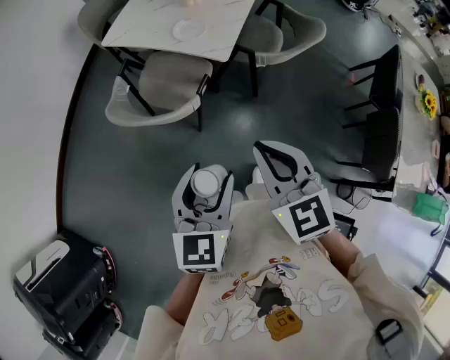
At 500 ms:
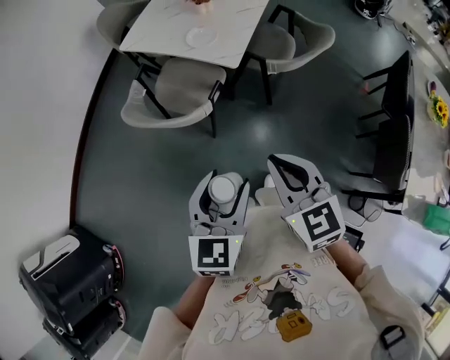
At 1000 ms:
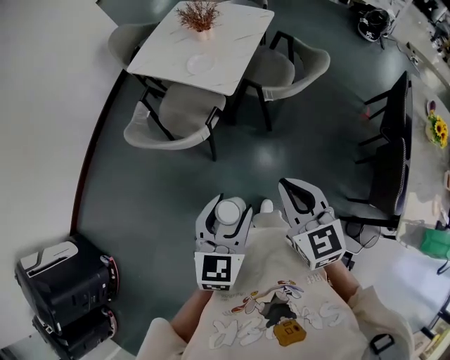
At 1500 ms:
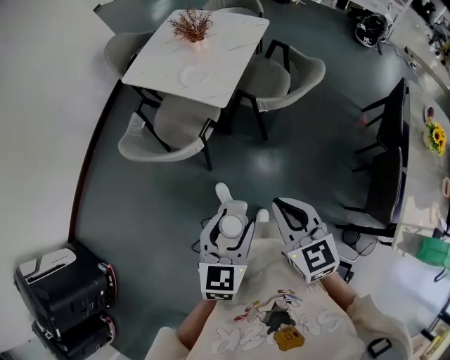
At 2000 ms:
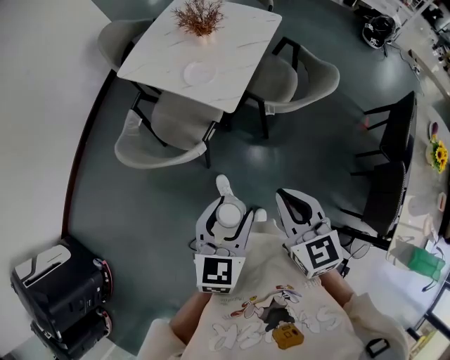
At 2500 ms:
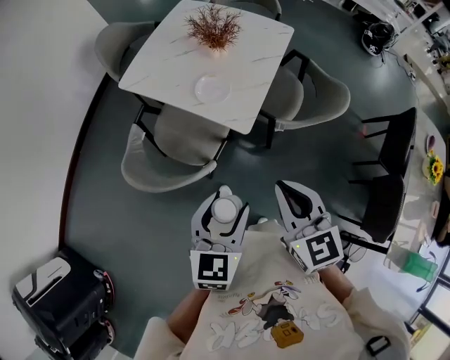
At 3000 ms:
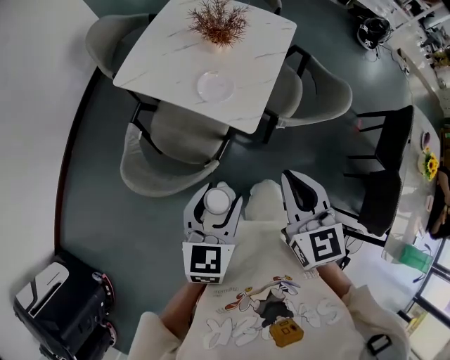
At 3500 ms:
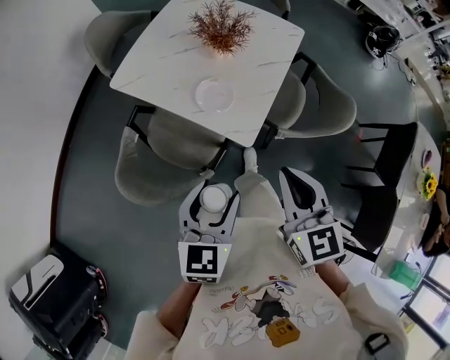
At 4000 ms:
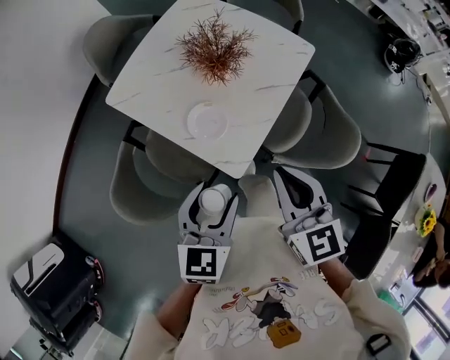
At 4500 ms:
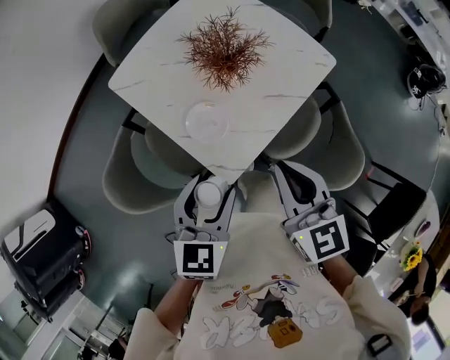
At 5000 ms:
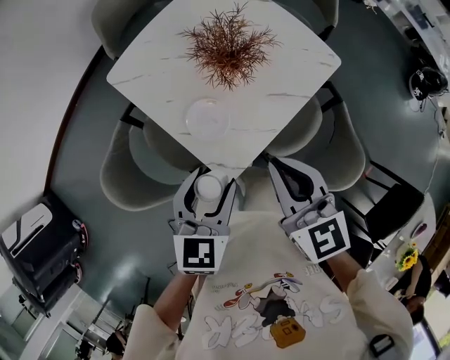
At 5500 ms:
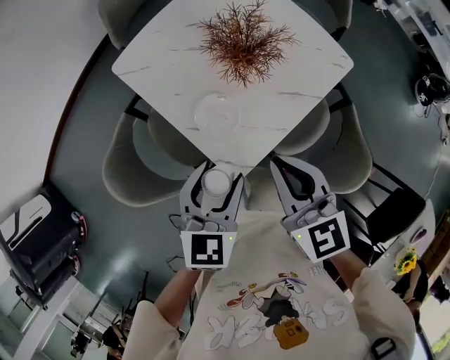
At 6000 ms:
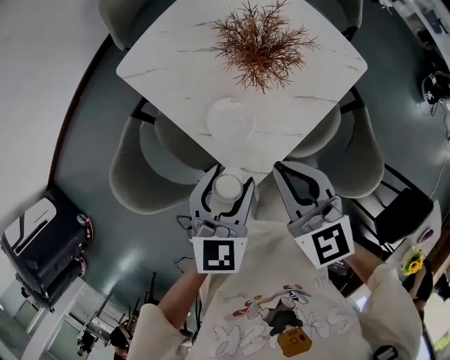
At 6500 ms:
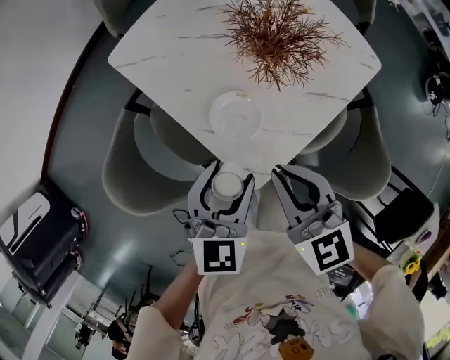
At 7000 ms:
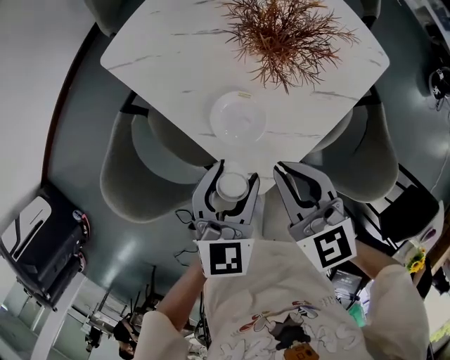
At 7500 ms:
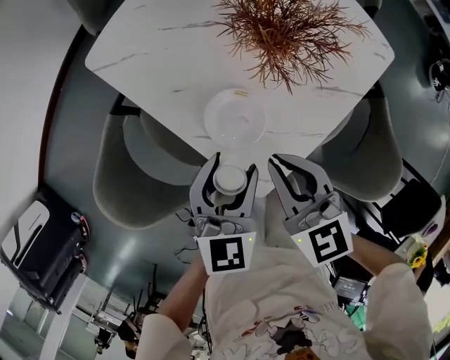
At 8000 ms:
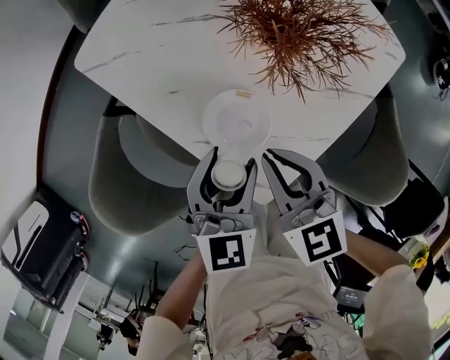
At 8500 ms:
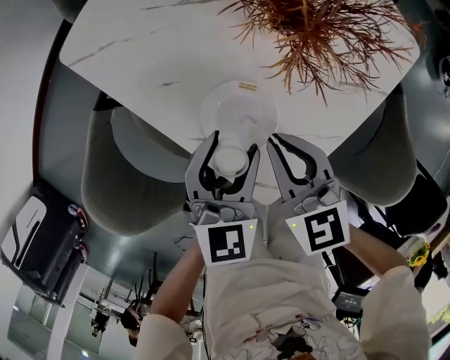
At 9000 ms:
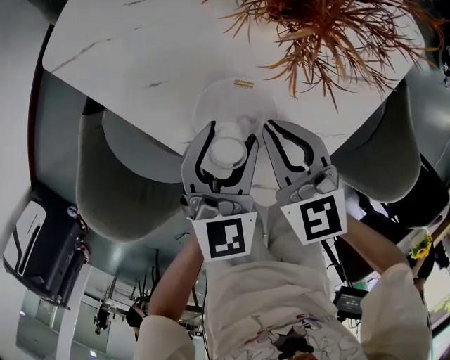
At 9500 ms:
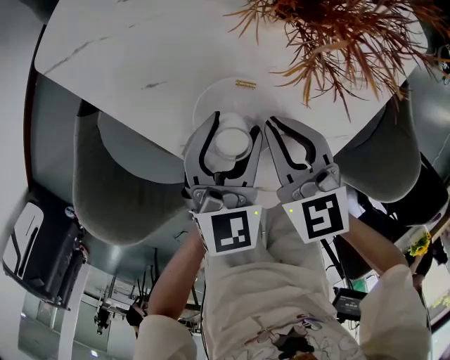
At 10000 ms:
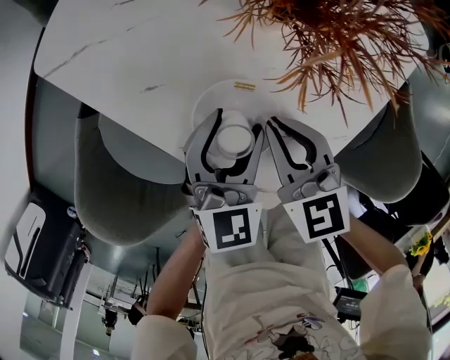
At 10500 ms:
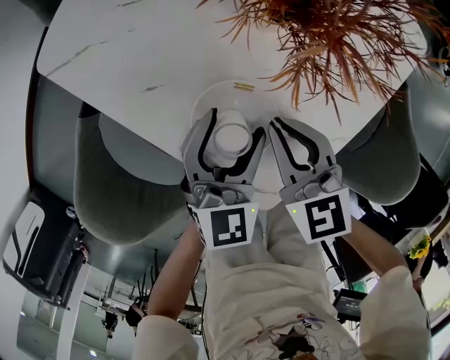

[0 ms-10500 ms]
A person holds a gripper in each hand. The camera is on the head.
0 ms to 2000 ms: Both grippers travel together to the right and forward, some 15 cm.
2000 ms to 4000 ms: The two grippers go about 35 cm forward.
4000 ms to 6500 ms: The right gripper travels forward, downward and to the left by approximately 15 cm, and swivels roughly 20 degrees. The left gripper travels forward and downward by roughly 15 cm.
6500 ms to 8500 ms: The right gripper goes approximately 15 cm downward. The left gripper travels downward and forward by roughly 15 cm.
8500 ms to 10500 ms: The right gripper changes place by about 5 cm. Meanwhile the left gripper moves some 5 cm.

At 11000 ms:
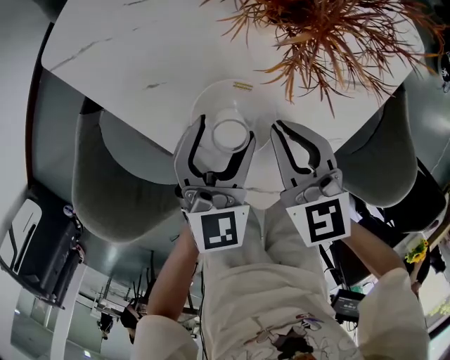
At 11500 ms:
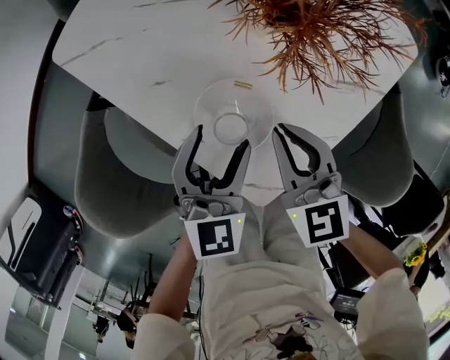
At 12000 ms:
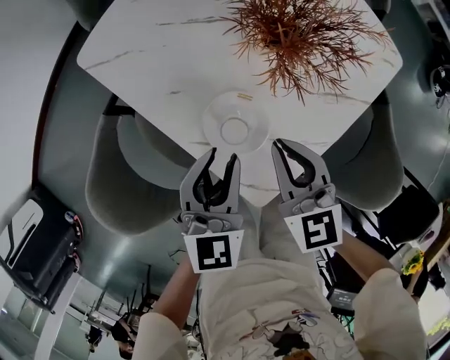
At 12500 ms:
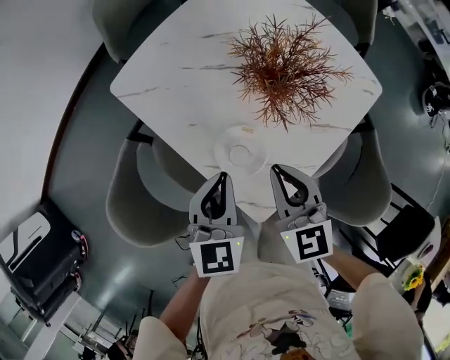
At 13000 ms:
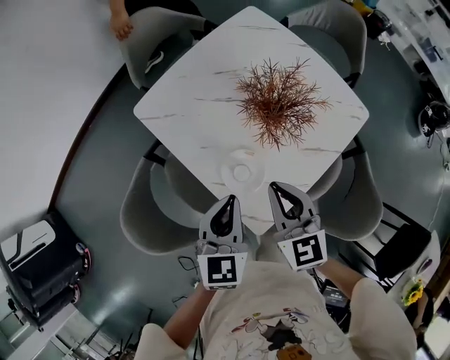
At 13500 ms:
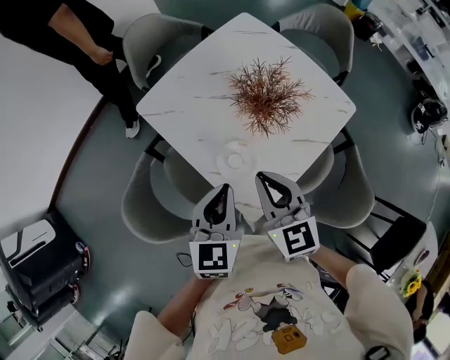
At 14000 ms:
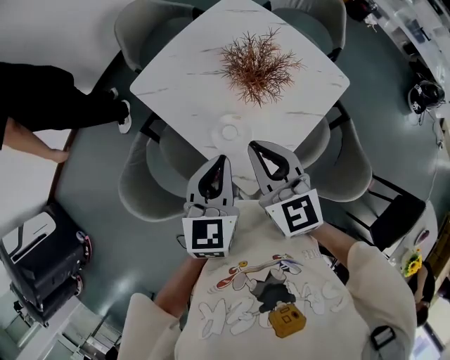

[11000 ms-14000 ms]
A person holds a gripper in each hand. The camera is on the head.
11000 ms to 12500 ms: Both grippers move upward, approximately 15 cm. The left gripper closes up.
12500 ms to 14000 ms: The two grippers go roughly 15 cm upward.

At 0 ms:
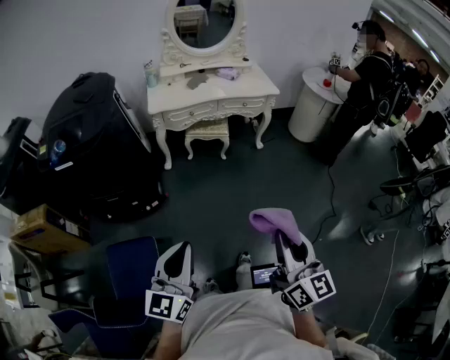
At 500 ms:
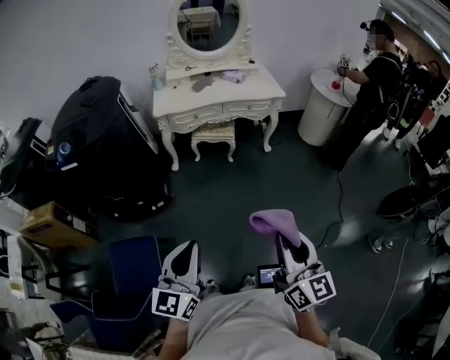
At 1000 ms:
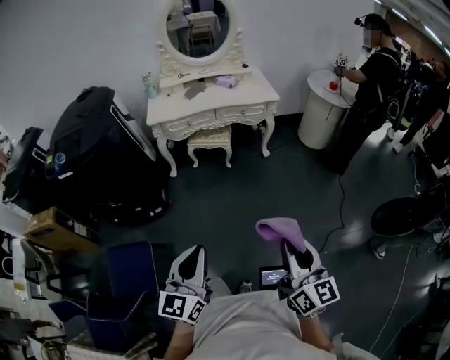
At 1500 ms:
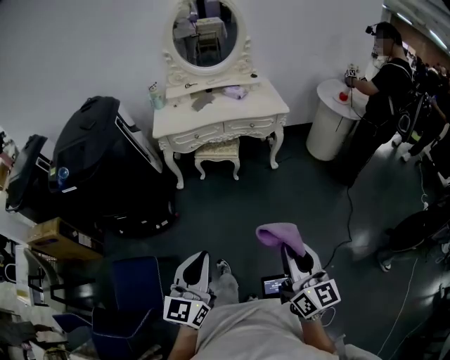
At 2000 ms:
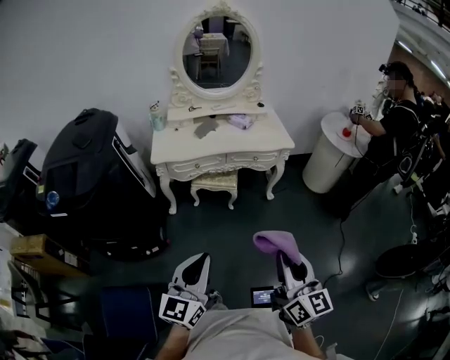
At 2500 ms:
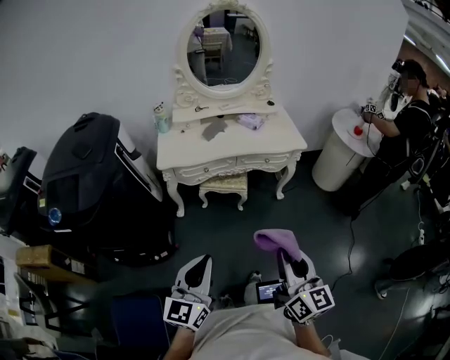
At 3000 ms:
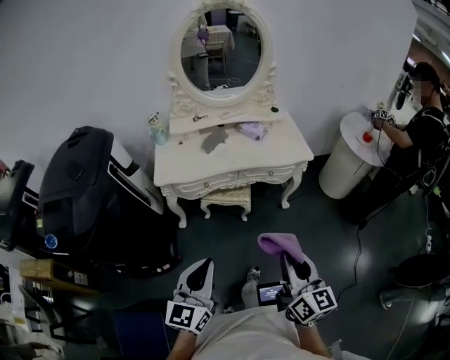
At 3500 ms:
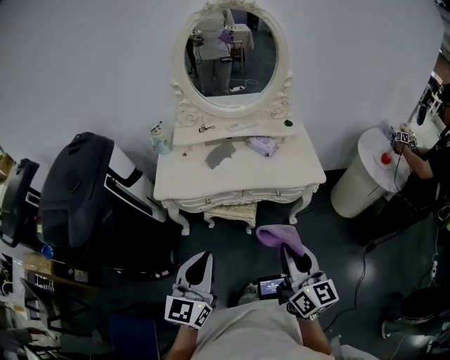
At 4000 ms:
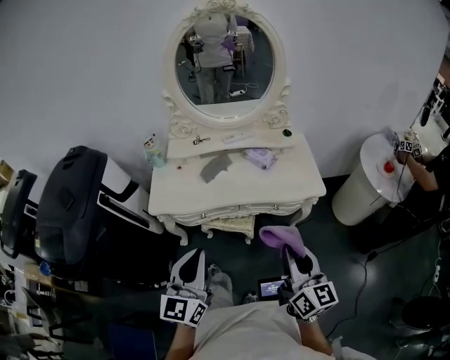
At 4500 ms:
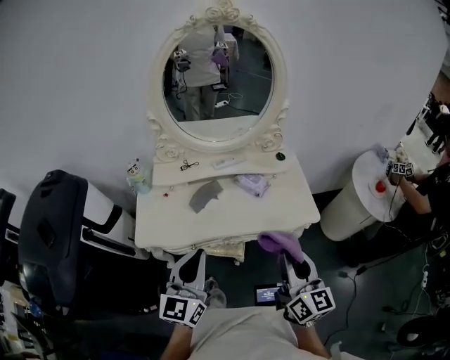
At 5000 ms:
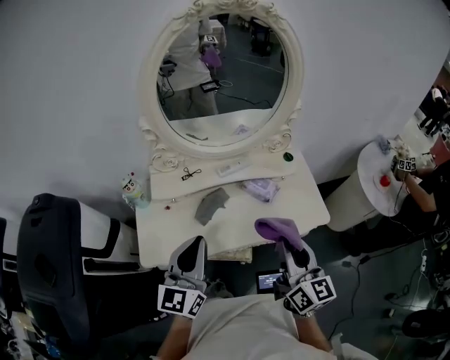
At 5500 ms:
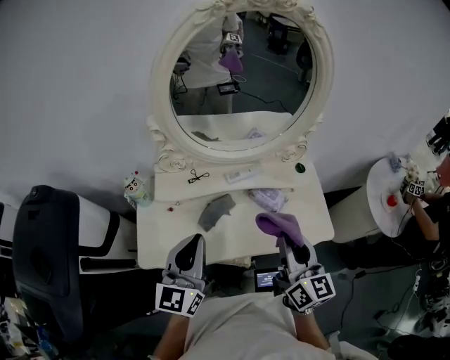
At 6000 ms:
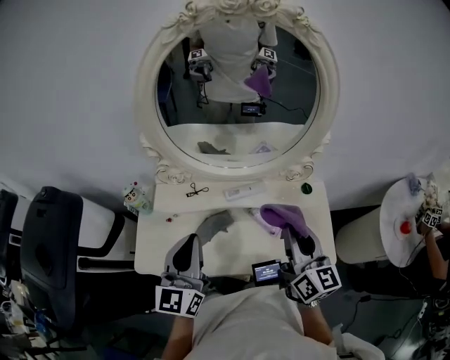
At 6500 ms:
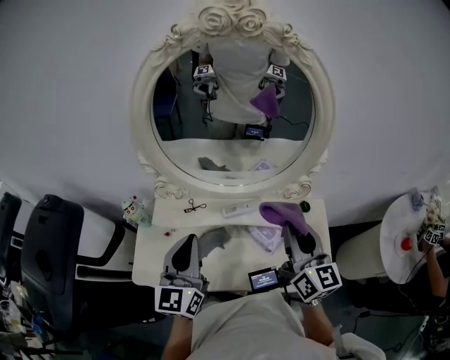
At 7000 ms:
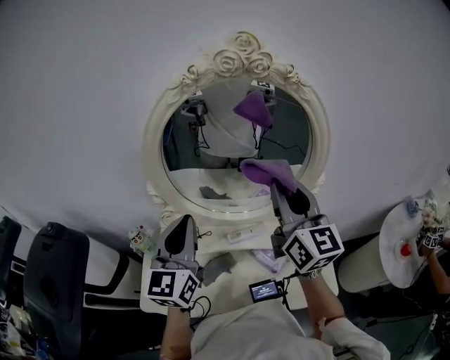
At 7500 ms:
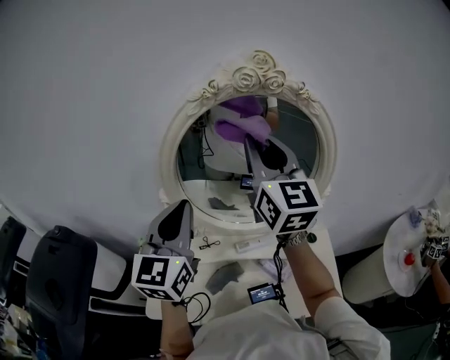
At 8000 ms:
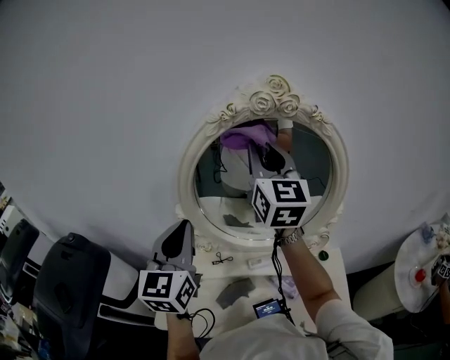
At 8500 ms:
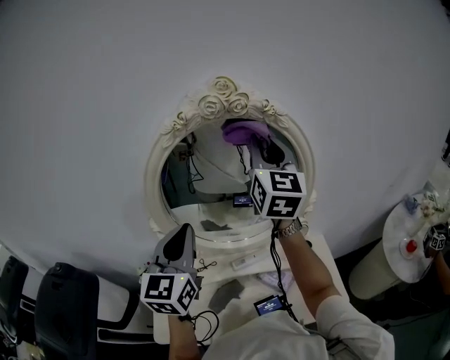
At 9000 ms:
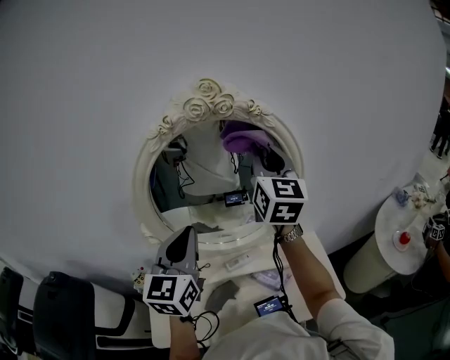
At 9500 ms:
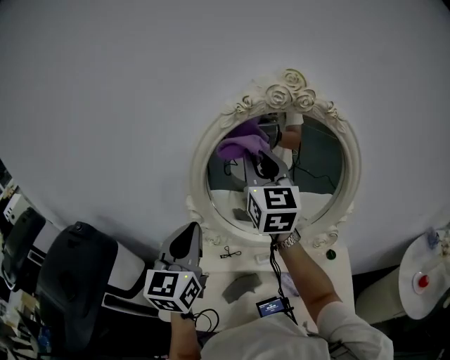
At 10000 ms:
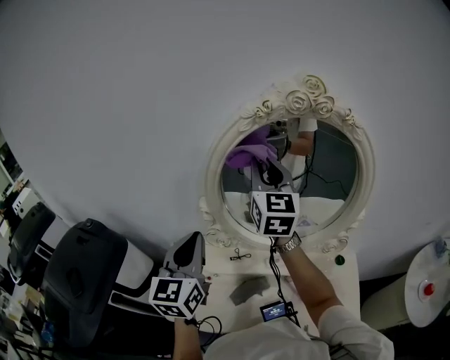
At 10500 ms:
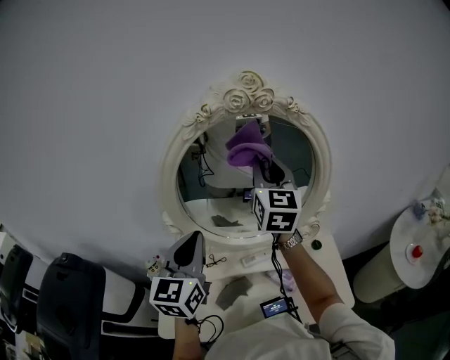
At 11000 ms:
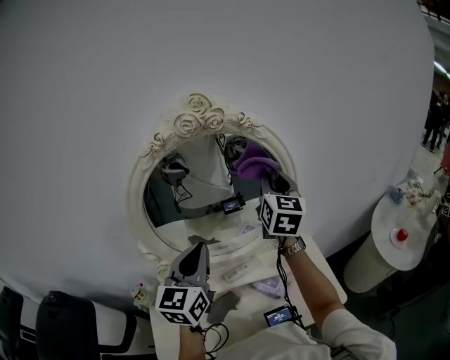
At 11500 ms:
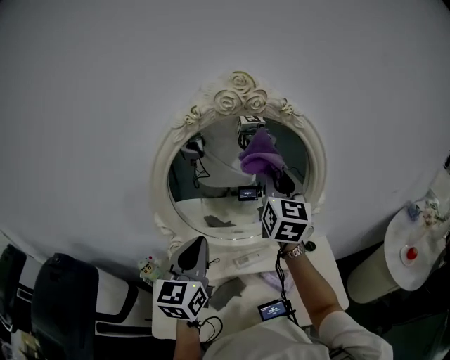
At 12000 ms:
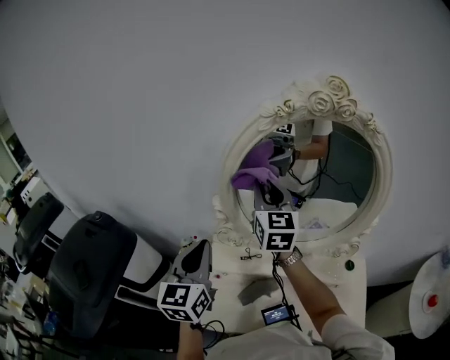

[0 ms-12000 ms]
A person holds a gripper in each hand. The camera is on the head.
0 ms to 2000 ms: Both grippers travel together forward, about 25 cm.
2000 ms to 4000 ms: The two grippers travel together, forward, some 40 cm.
4000 ms to 6000 ms: Both grippers are carried forward, about 40 cm.
6000 ms to 8000 ms: The right gripper travels upward, forward and to the left by some 40 cm, and rotates approximately 30 degrees, while the left gripper travels upward and forward by some 20 cm.
8000 ms to 10000 ms: The right gripper moves downward, roughly 5 cm, and goes to the right and returns, roughly 15 cm each way; the left gripper moves about 10 cm to the right and comes back.
10000 ms to 12000 ms: The right gripper heads downward, covering some 10 cm.

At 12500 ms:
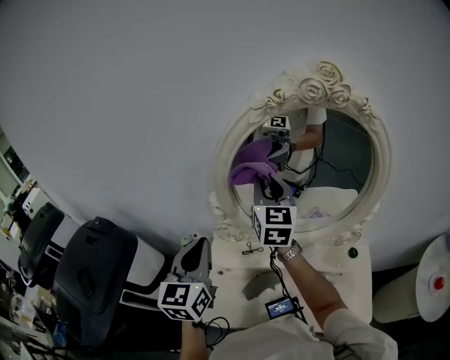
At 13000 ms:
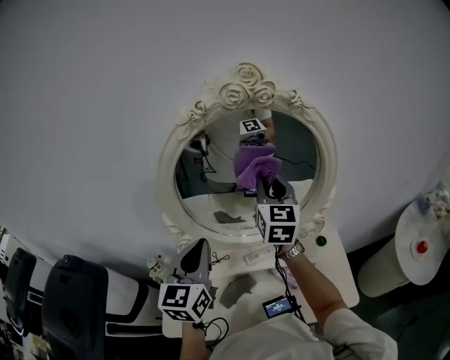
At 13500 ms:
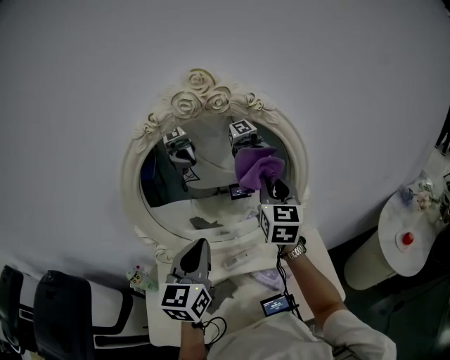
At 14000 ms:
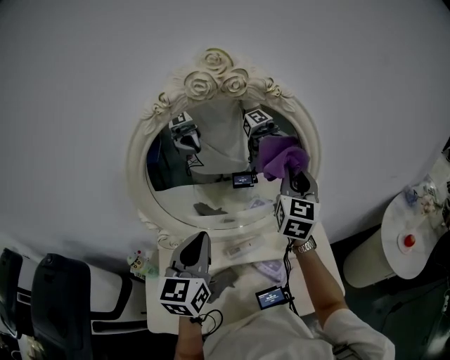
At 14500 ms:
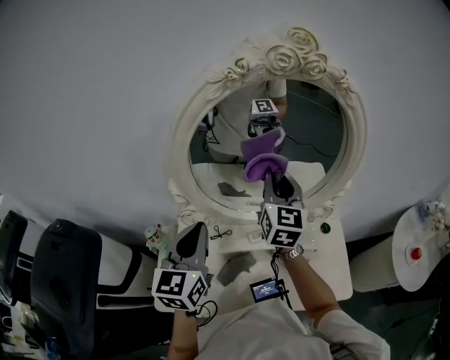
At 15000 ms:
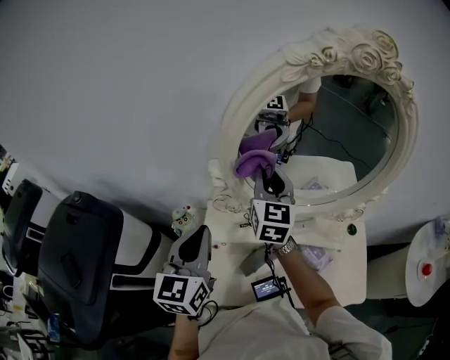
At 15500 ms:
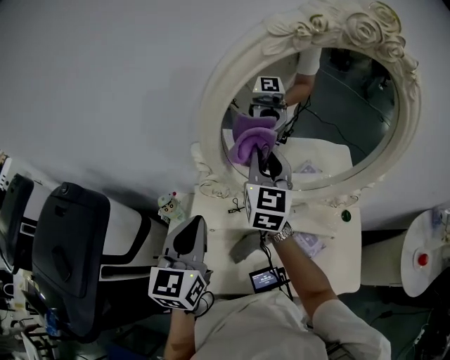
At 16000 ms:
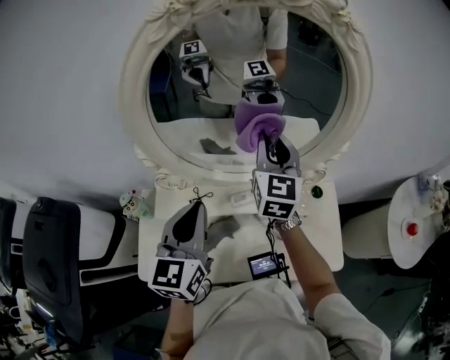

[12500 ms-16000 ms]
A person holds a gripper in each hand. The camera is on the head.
14500 ms to 16000 ms: The right gripper reaches roughly 15 cm to the left, then returns, while the left gripper moves to the right, about 5 cm.
